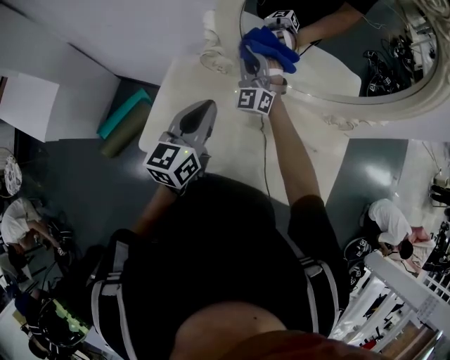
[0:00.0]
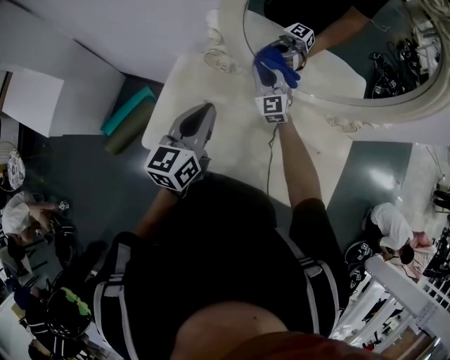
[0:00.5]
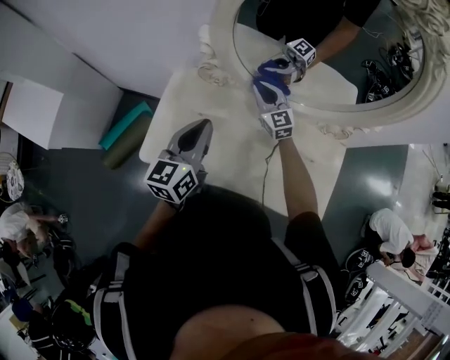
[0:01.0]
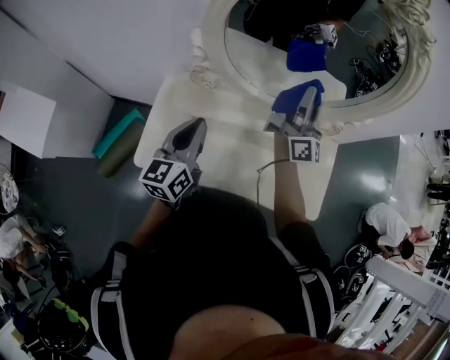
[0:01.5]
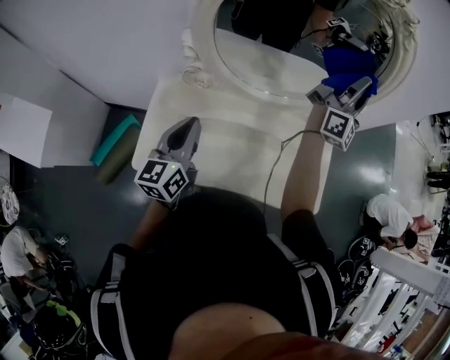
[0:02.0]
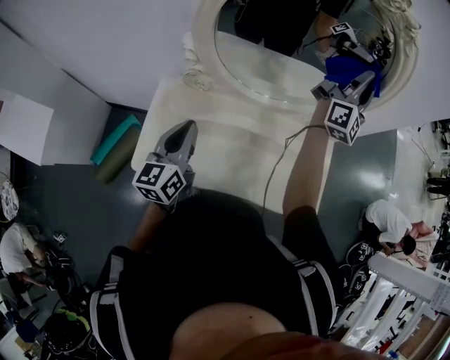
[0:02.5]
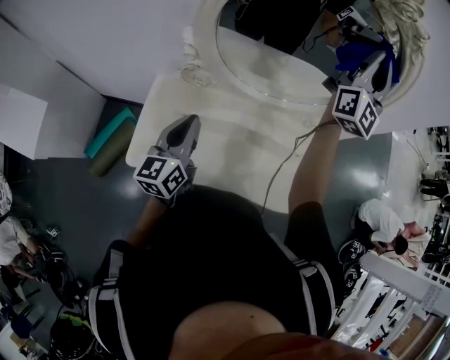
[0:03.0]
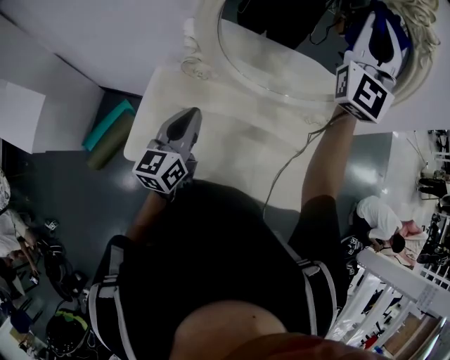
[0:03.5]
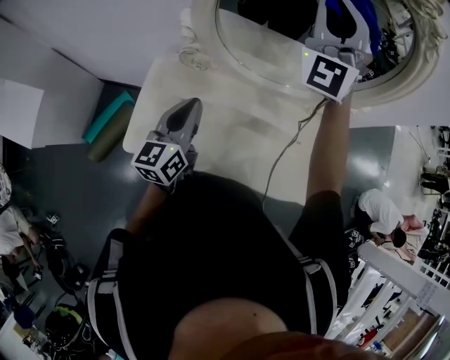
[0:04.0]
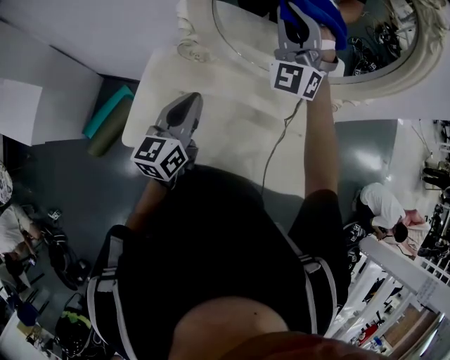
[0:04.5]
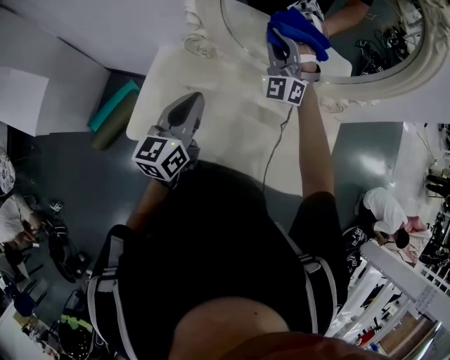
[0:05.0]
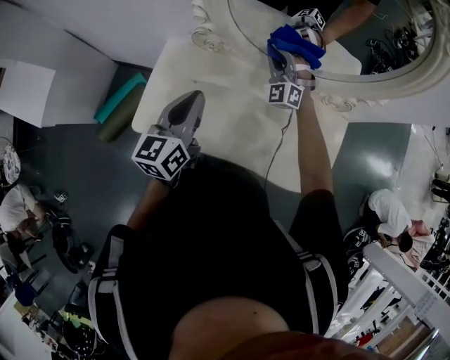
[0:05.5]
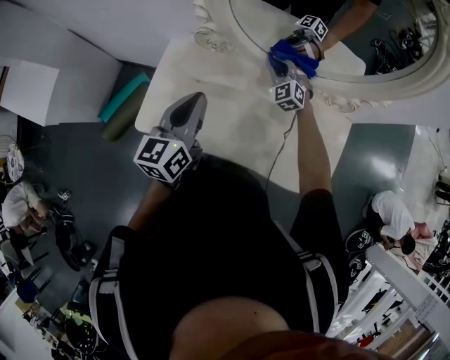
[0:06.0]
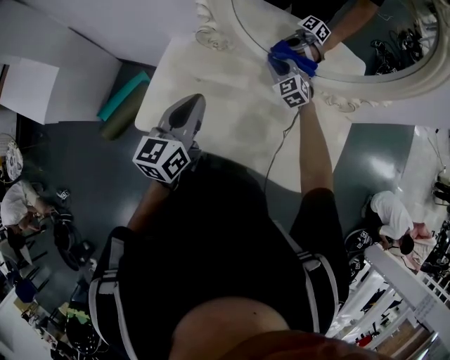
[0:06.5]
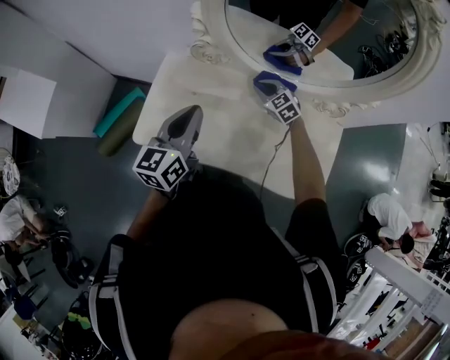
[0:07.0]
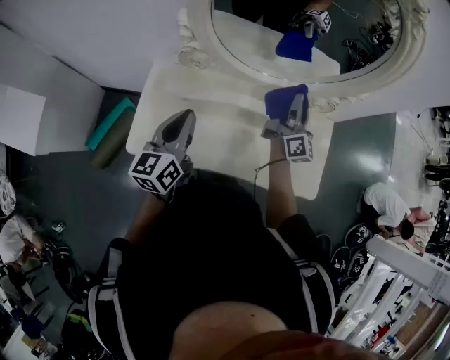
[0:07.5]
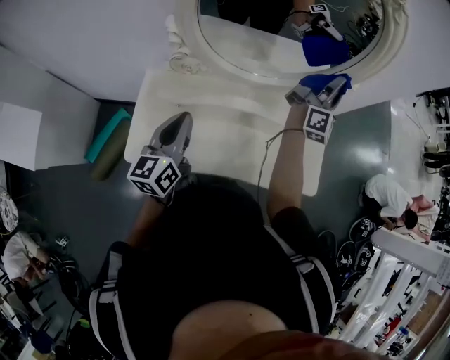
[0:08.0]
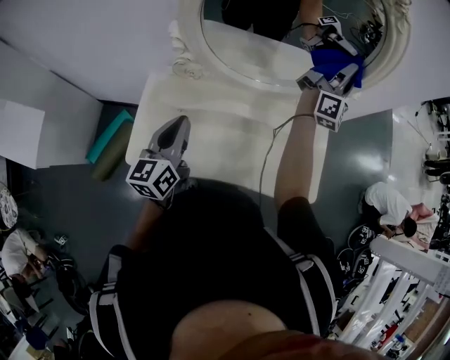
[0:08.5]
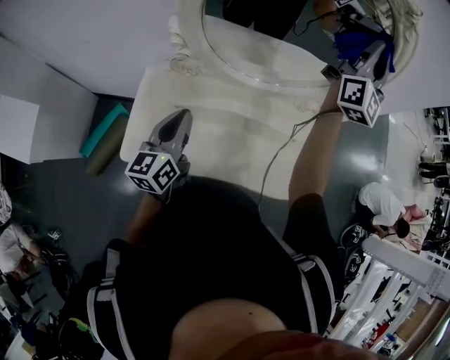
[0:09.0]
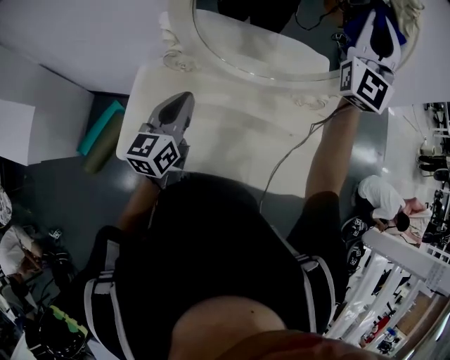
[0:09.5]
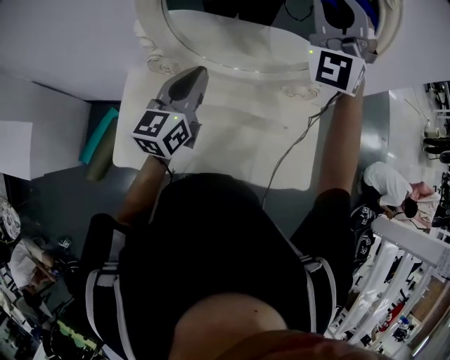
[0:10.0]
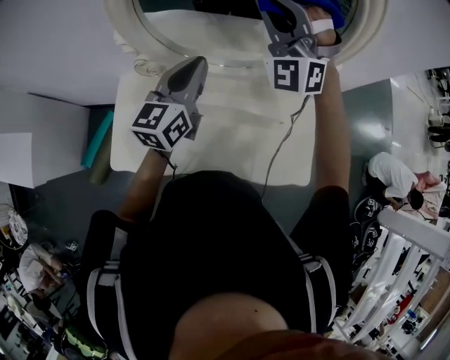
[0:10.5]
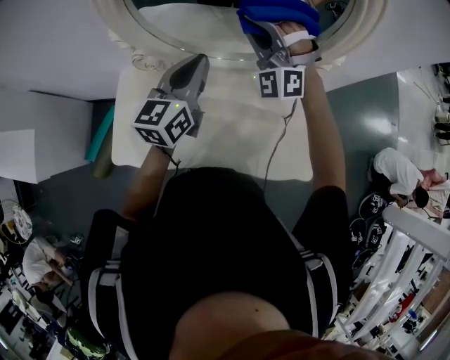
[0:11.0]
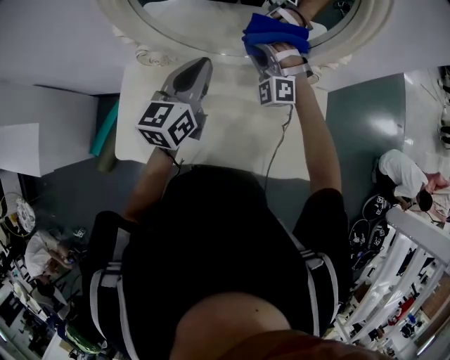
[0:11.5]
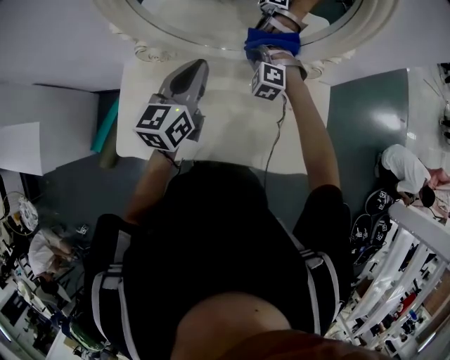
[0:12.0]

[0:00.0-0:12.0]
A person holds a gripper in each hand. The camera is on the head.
0:00.0 to 0:02.0: The right gripper moves some 40 cm, and tilts its fingers some 40 degrees upward.
0:02.0 to 0:04.0: The right gripper travels to the left by approximately 25 cm, and rolls counterclockwise, seen from behind, by about 70 degrees.
0:04.0 to 0:06.0: The right gripper travels downward by some 50 cm, and points its fingers approximately 50 degrees further downward.
0:06.0 to 0:08.0: The right gripper moves roughly 35 cm, and tilts its fingers some 60 degrees upward.
0:08.0 to 0:10.0: The right gripper travels upward and to the left by roughly 25 cm, and rolls counterclockwise, seen from behind, by some 90 degrees, while the left gripper heads forward and to the right, covering approximately 15 cm.
0:10.0 to 0:12.0: The right gripper moves downward, roughly 40 cm, and tips its fingers downward by roughly 60 degrees. The left gripper is displaced to the right by roughly 5 cm.

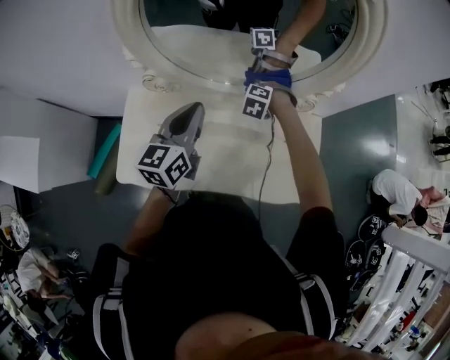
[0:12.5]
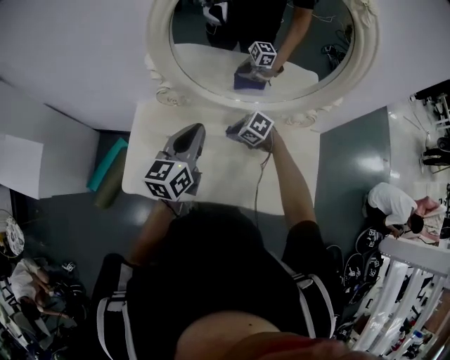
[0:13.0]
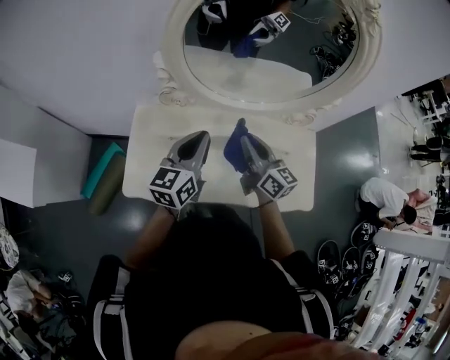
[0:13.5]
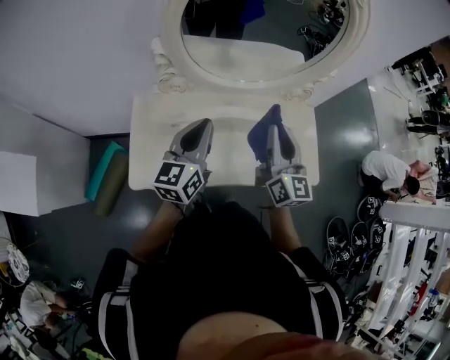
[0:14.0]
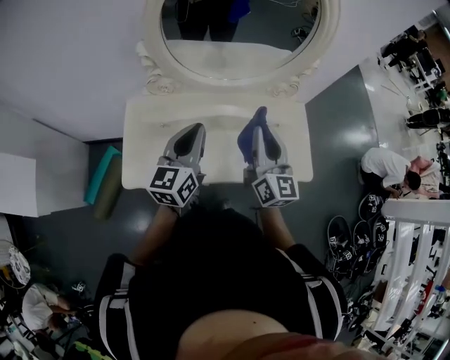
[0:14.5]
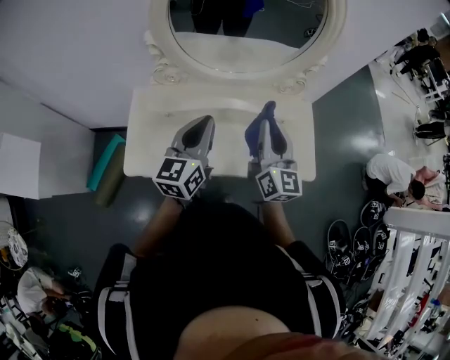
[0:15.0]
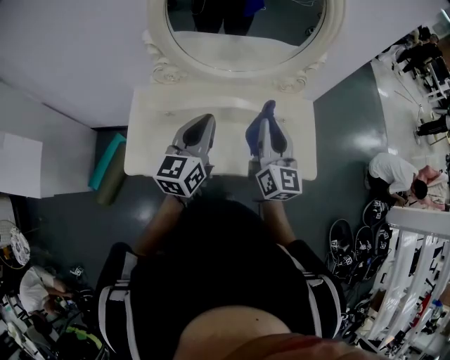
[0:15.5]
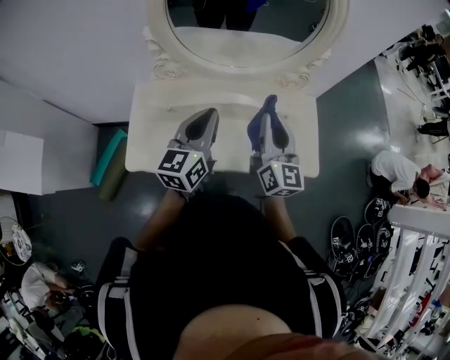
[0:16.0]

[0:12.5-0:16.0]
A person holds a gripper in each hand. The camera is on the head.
0:12.5 to 0:14.5: The left gripper shifts by about 15 cm, while the right gripper changes place by about 35 cm, and tips its fingers upward by roughly 70 degrees.
0:14.5 to 0:16.0: The grippers move only a little.

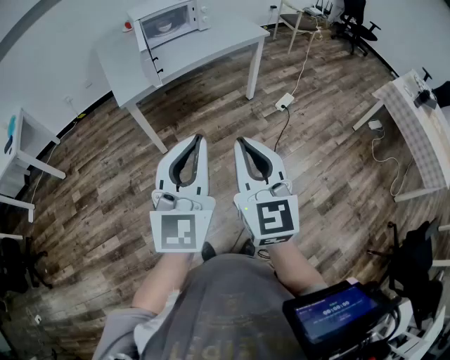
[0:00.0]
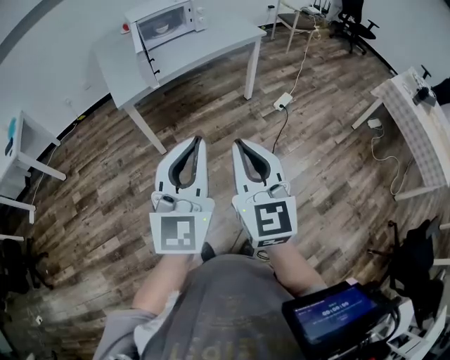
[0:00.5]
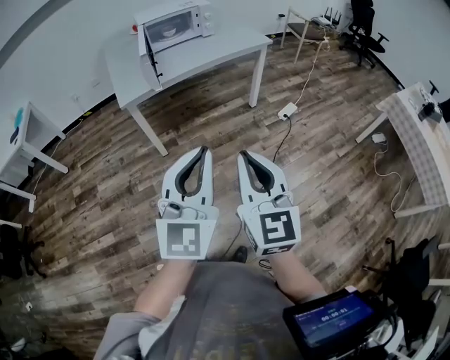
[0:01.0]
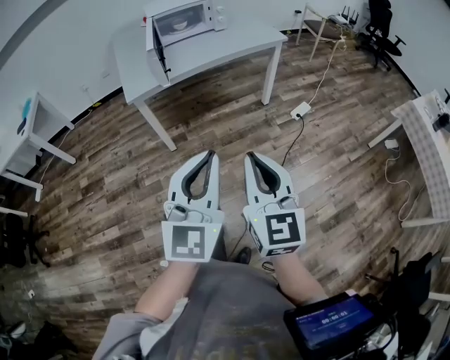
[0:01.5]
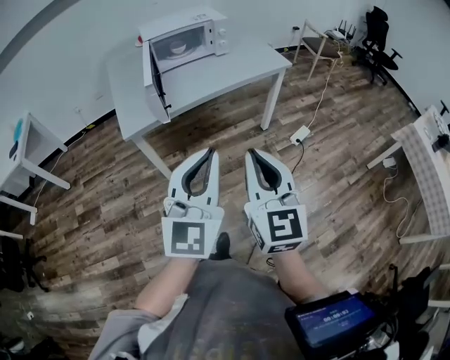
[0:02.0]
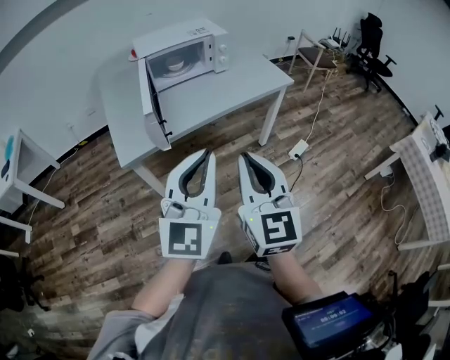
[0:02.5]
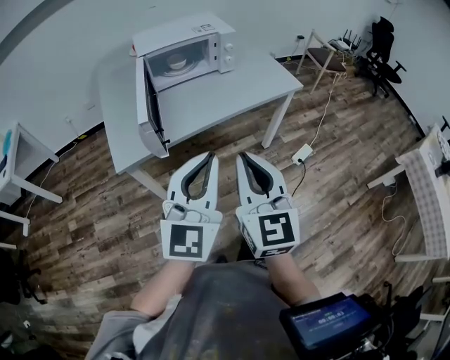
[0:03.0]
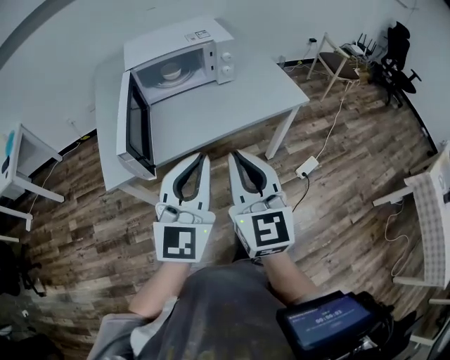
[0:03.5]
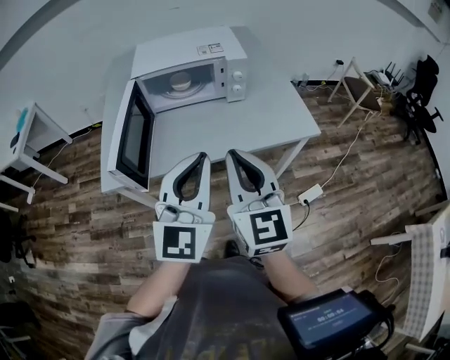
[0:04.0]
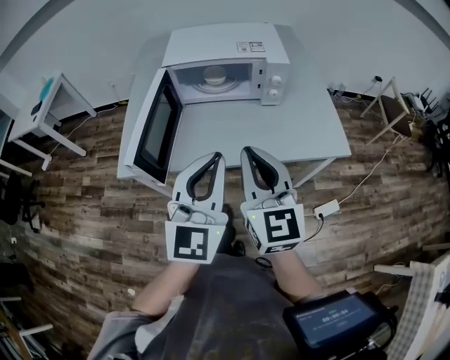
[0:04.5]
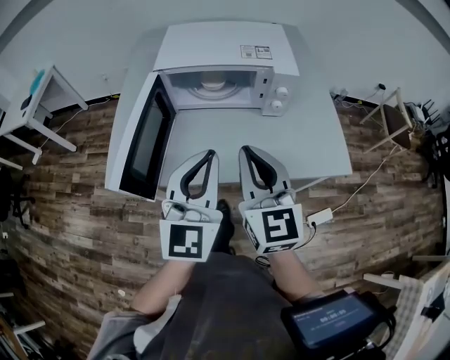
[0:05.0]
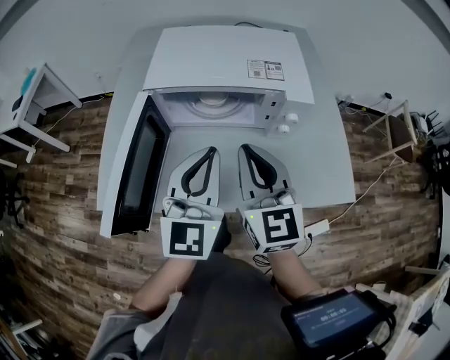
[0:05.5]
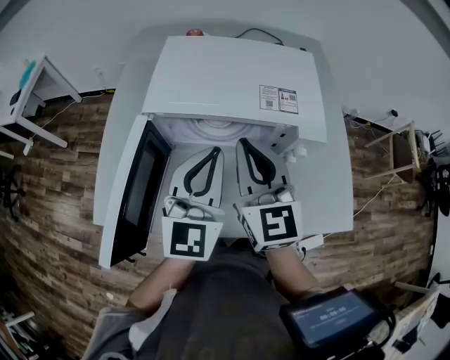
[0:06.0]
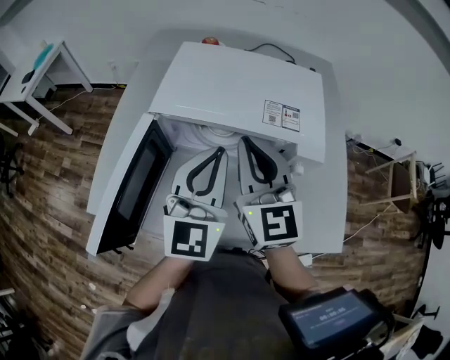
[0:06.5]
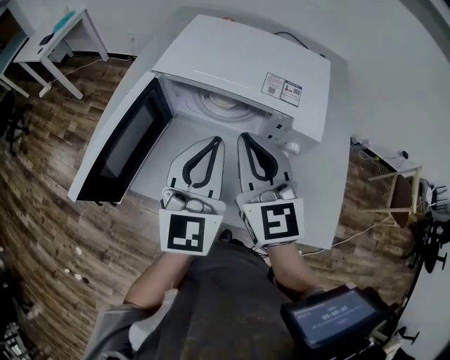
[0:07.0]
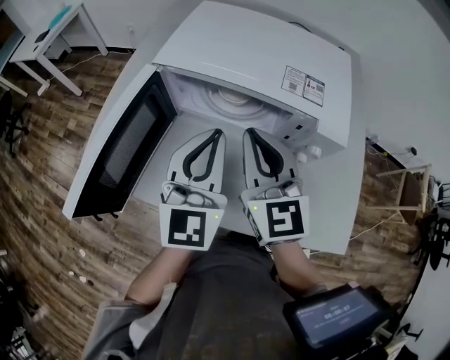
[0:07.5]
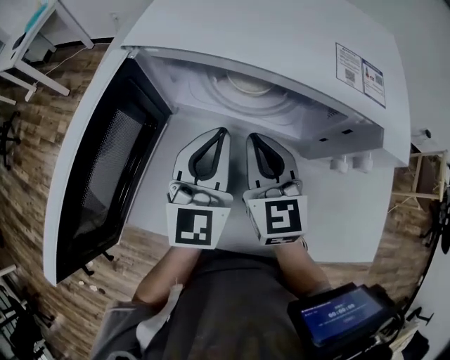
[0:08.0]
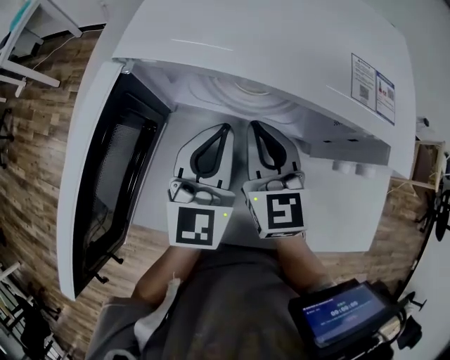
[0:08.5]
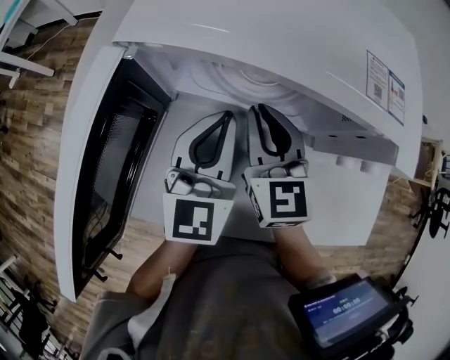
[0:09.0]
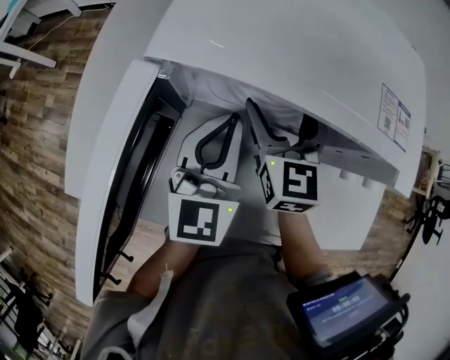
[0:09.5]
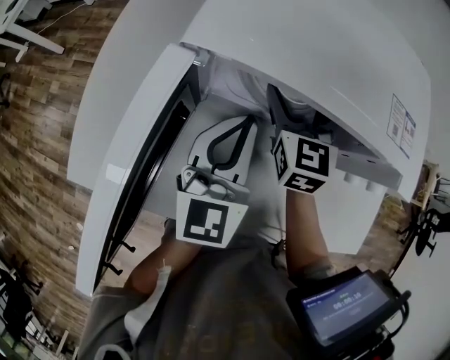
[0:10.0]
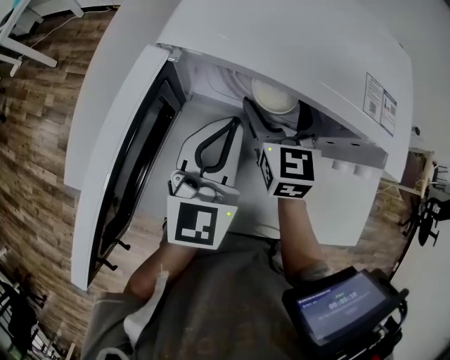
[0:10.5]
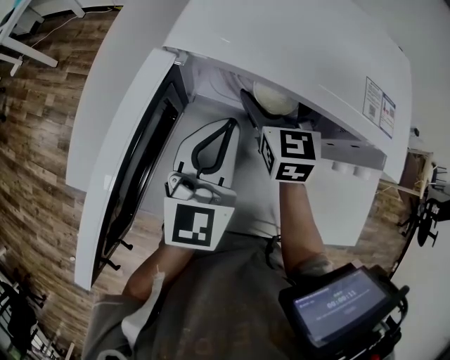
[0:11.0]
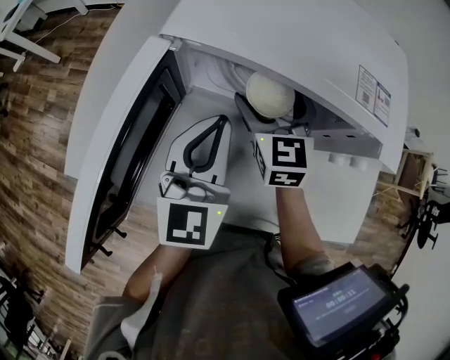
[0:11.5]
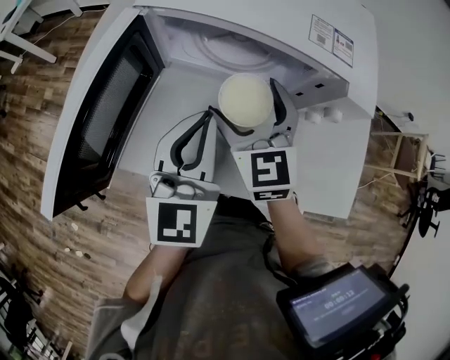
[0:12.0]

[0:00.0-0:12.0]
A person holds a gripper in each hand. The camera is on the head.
0:00.0 to 0:02.0: Both grippers travel together forward, about 15 cm.
0:02.0 to 0:04.0: The grippers both shift forward by approximately 35 cm.
0:04.0 to 0:06.0: The grippers both shift forward by approximately 30 cm.
0:06.0 to 0:08.0: Both grippers travel together downward, approximately 20 cm.
0:08.0 to 0:10.0: The right gripper moves forward, roughly 10 cm, and opens its fingers.
0:10.0 to 0:12.0: The two grippers go about 10 cm backward.
